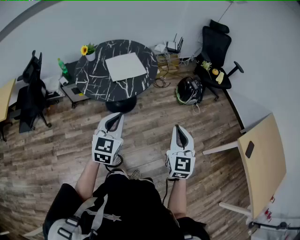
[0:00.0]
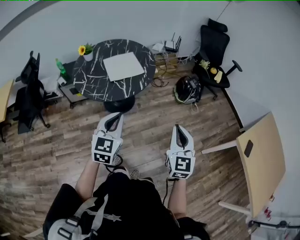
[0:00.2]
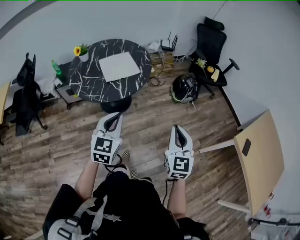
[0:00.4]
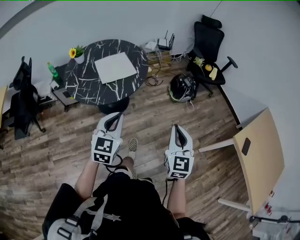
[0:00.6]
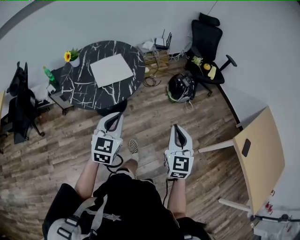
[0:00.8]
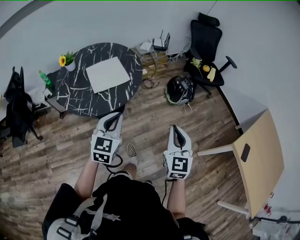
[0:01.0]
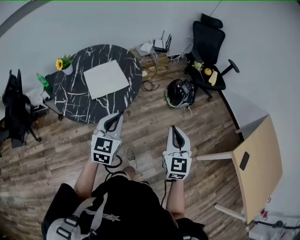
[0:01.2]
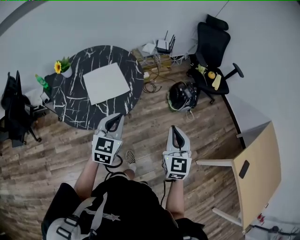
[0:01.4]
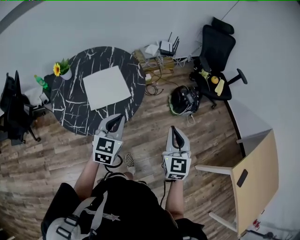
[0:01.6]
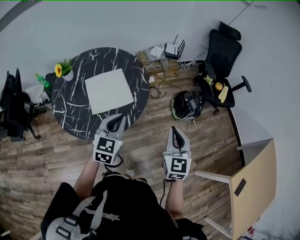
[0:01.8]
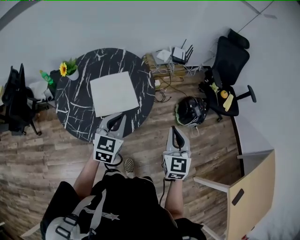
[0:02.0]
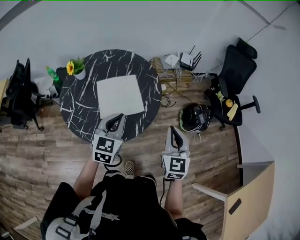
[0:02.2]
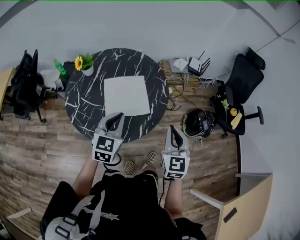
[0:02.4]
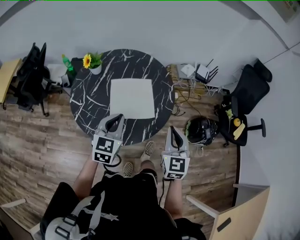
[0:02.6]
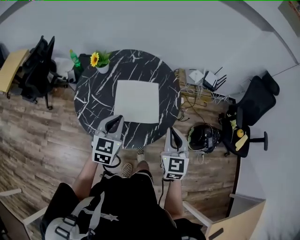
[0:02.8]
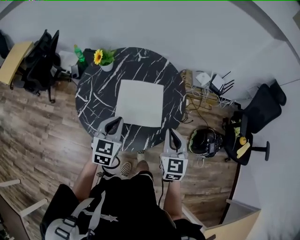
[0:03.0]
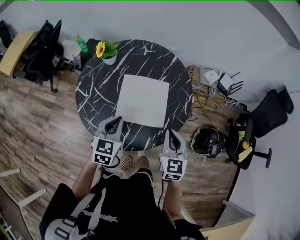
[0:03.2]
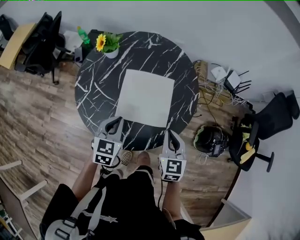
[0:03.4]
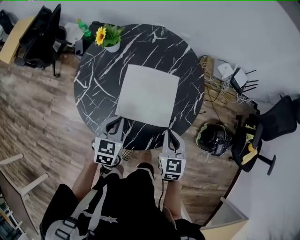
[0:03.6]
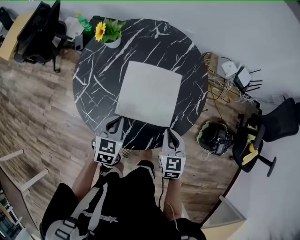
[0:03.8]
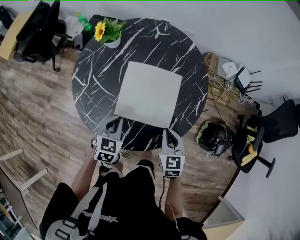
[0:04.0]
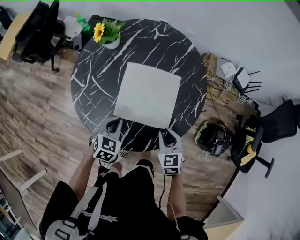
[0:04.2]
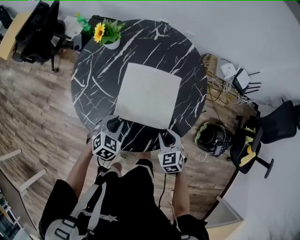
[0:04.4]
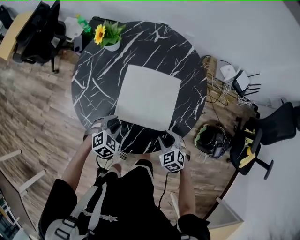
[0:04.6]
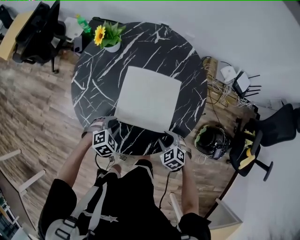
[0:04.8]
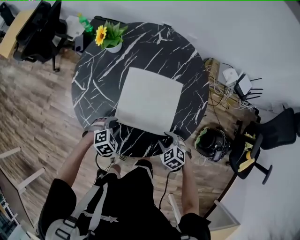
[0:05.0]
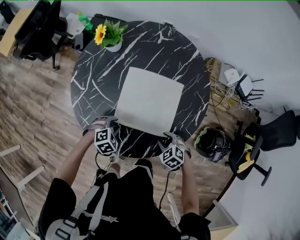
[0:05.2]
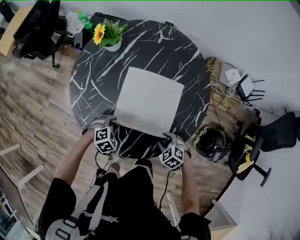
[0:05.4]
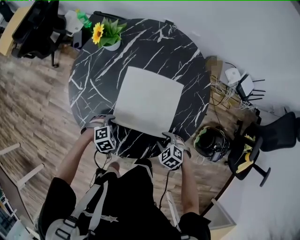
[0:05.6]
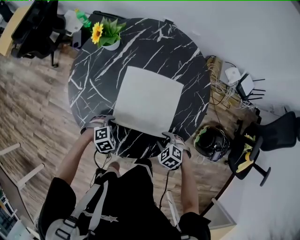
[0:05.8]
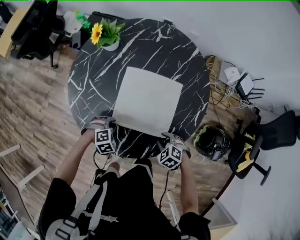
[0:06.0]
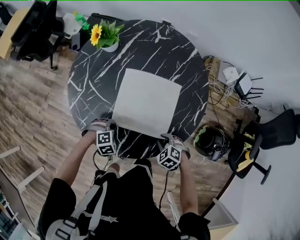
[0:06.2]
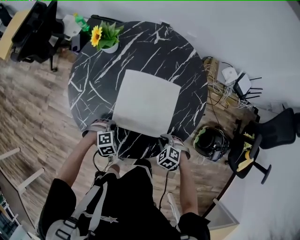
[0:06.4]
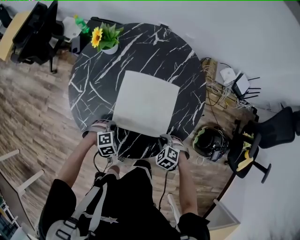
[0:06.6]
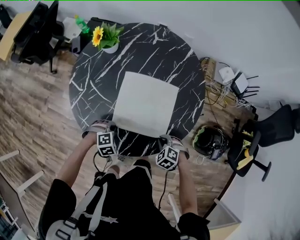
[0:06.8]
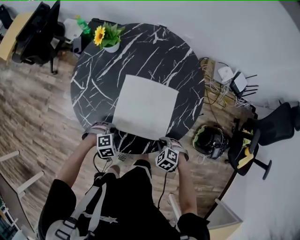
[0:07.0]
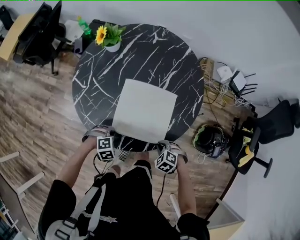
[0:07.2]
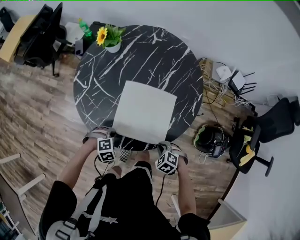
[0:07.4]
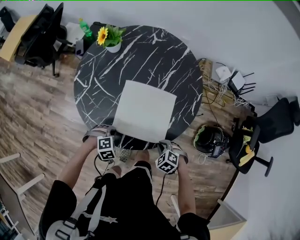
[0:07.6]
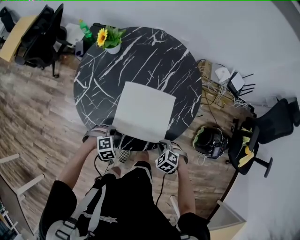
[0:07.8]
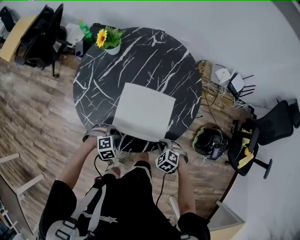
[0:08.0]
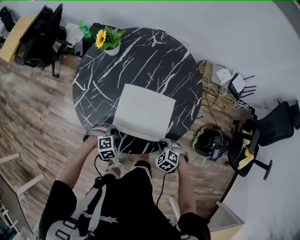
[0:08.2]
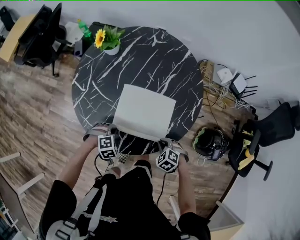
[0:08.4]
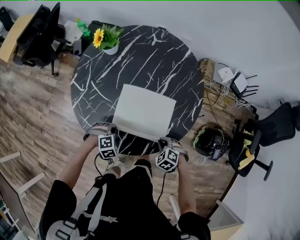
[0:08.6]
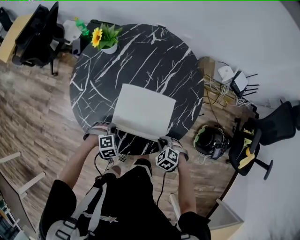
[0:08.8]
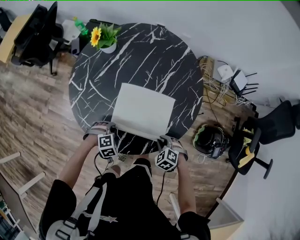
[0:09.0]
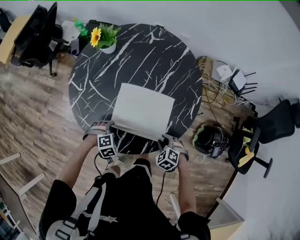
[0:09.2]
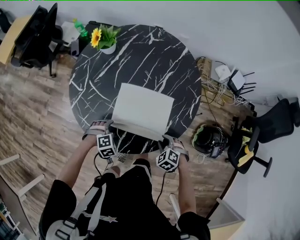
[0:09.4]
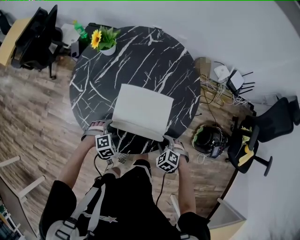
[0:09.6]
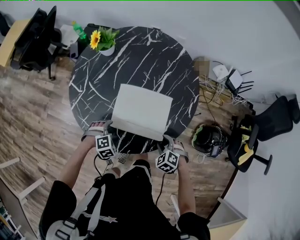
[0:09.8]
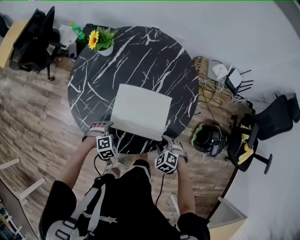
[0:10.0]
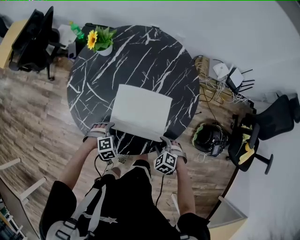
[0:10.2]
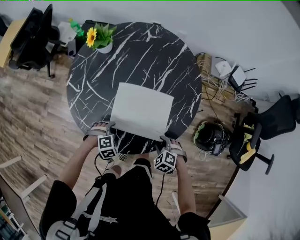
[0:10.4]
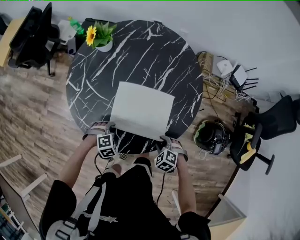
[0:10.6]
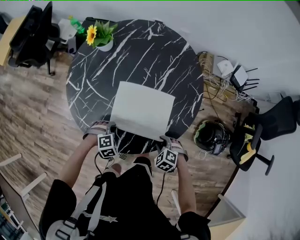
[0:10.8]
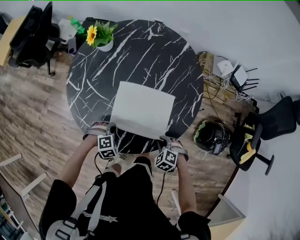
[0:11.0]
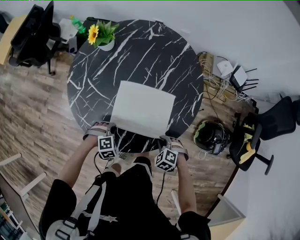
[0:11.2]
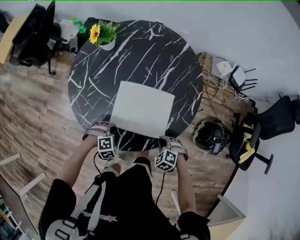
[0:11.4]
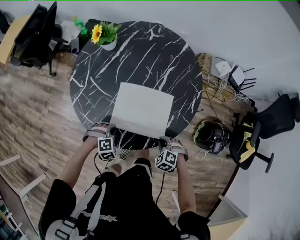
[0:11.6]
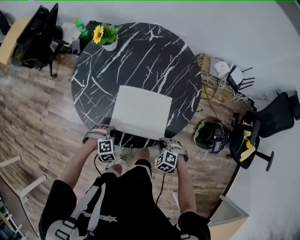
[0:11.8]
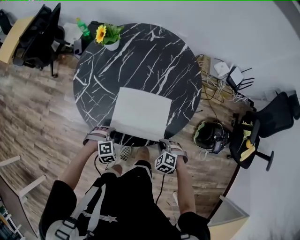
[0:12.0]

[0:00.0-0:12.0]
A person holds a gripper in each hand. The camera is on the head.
0:00.0 to 0:01.6: The two grippers go roughly 30 cm forward.
0:01.6 to 0:03.0: The right gripper shifts by about 30 cm, and turns by approximately 30 degrees. The left gripper shifts by approximately 20 cm, and swivels about 30 degrees.
0:03.0 to 0:04.4: Both grippers move downward, some 20 cm. The left gripper rotates about 30 degrees, and opens up. Meanwhile the right gripper tips its fingers downward by about 30 degrees, and opens.
0:04.4 to 0:06.0: The two grippers go approximately 10 cm downward. The left gripper changes its angle by some 40 degrees. The right gripper swivels roughly 30 degrees.
0:06.0 to 0:07.6: The left gripper changes place by approximately 10 cm. The right gripper changes place by roughly 10 cm, and closes its fingers.
0:07.6 to 0:09.0: The left gripper ends up about 5 cm from where it was, while the right gripper ends up some 5 cm from where it was.
0:09.0 to 0:10.4: The right gripper opens, while the left gripper opens.
0:10.4 to 0:12.0: The left gripper ends up some 5 cm from where it was, and closes; the right gripper changes place by some 5 cm, and closes.

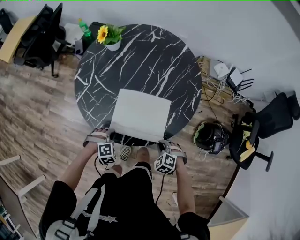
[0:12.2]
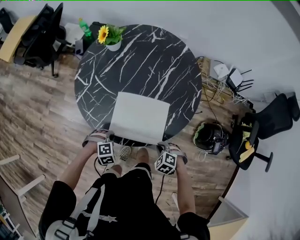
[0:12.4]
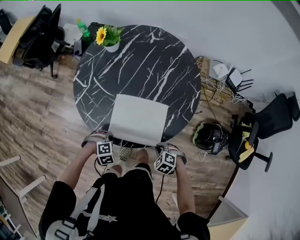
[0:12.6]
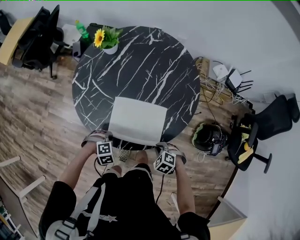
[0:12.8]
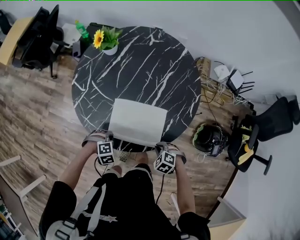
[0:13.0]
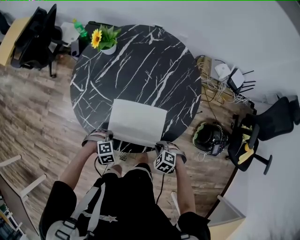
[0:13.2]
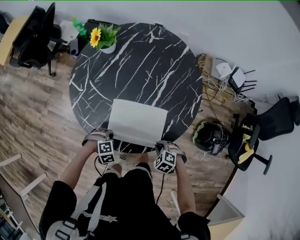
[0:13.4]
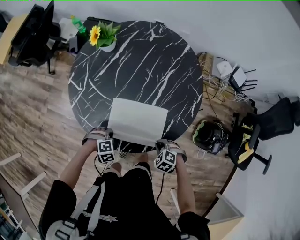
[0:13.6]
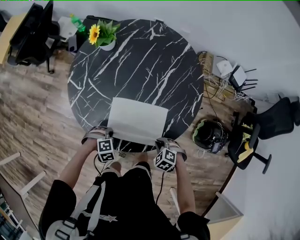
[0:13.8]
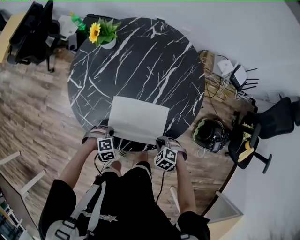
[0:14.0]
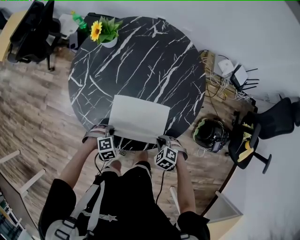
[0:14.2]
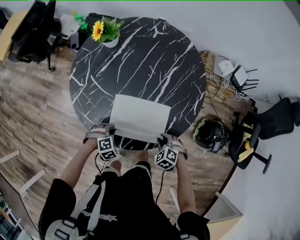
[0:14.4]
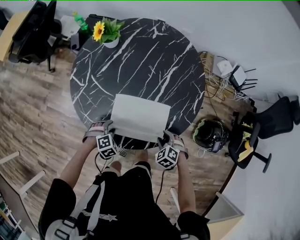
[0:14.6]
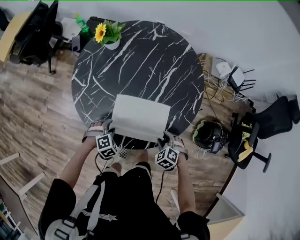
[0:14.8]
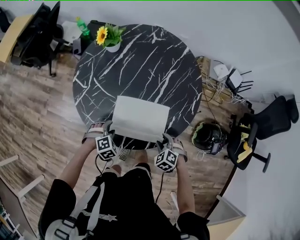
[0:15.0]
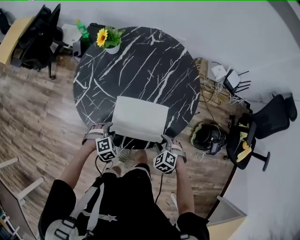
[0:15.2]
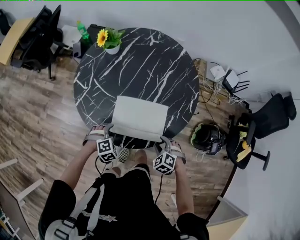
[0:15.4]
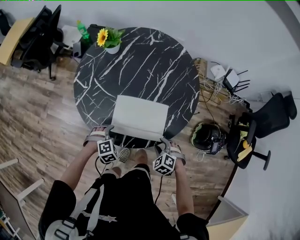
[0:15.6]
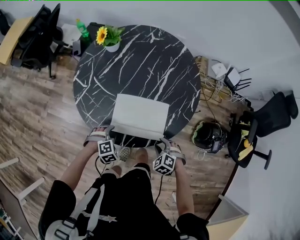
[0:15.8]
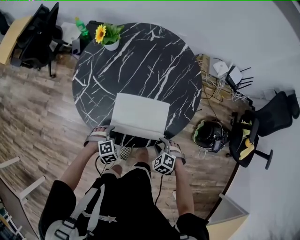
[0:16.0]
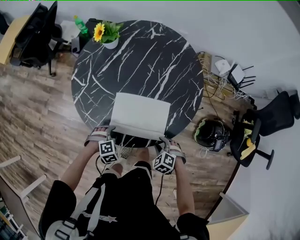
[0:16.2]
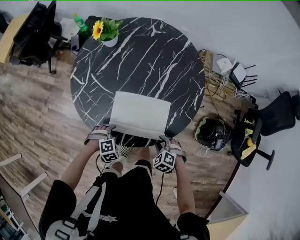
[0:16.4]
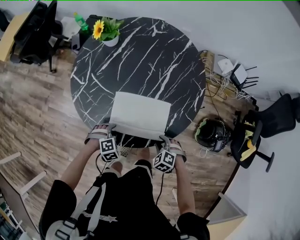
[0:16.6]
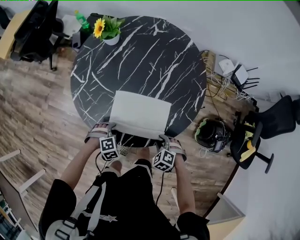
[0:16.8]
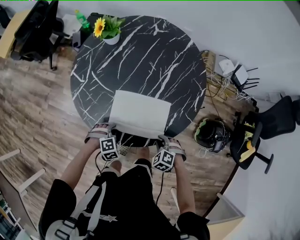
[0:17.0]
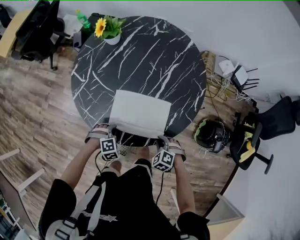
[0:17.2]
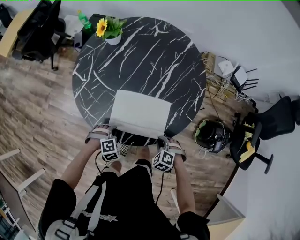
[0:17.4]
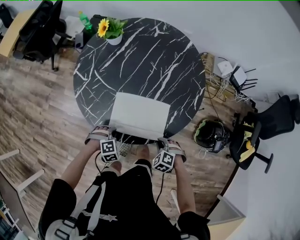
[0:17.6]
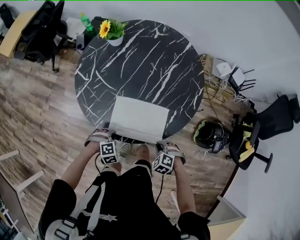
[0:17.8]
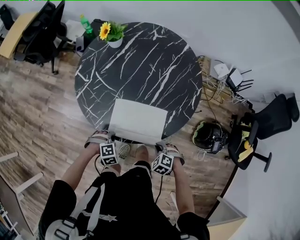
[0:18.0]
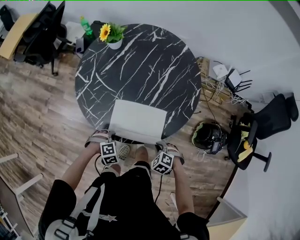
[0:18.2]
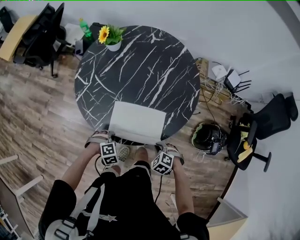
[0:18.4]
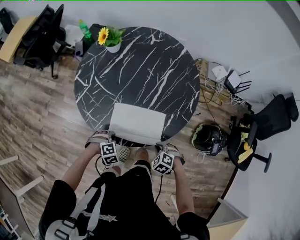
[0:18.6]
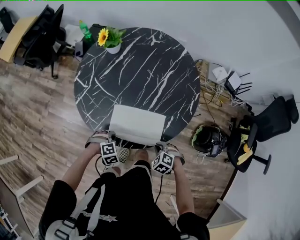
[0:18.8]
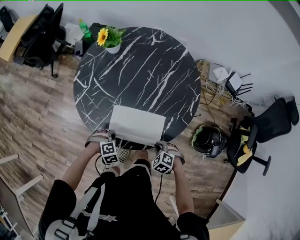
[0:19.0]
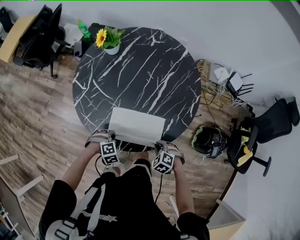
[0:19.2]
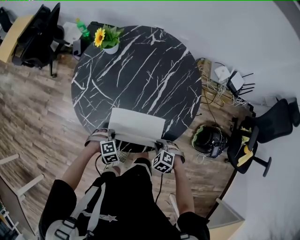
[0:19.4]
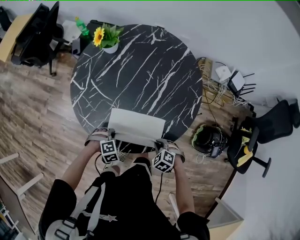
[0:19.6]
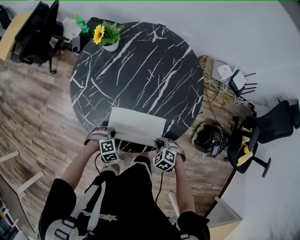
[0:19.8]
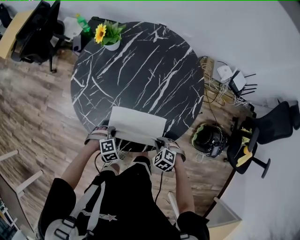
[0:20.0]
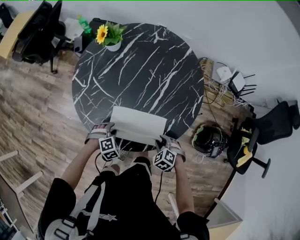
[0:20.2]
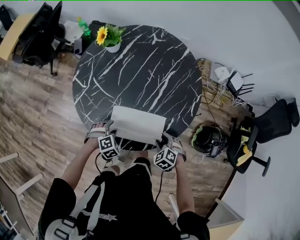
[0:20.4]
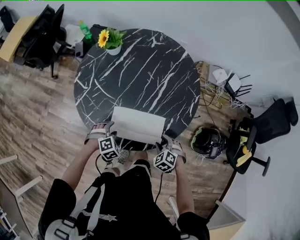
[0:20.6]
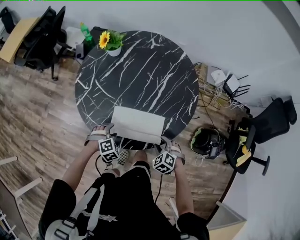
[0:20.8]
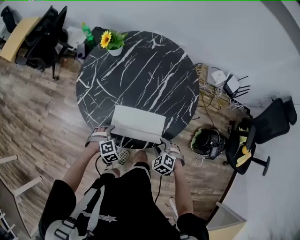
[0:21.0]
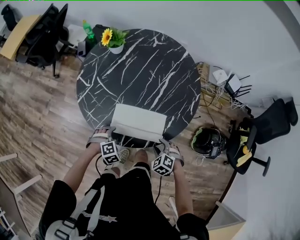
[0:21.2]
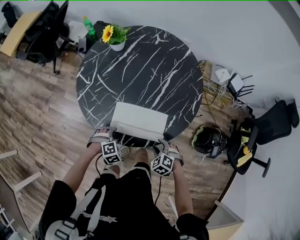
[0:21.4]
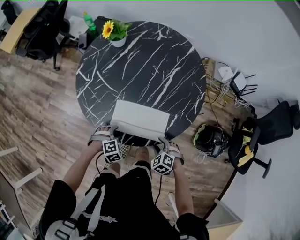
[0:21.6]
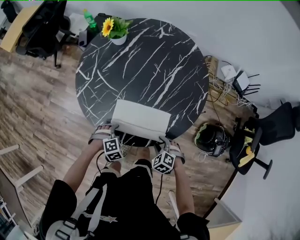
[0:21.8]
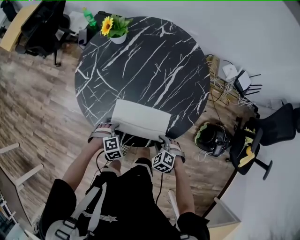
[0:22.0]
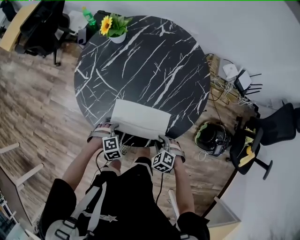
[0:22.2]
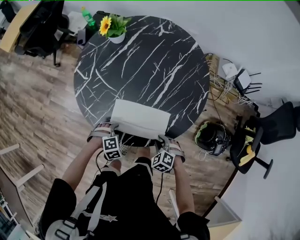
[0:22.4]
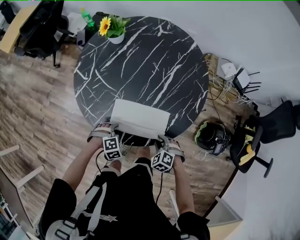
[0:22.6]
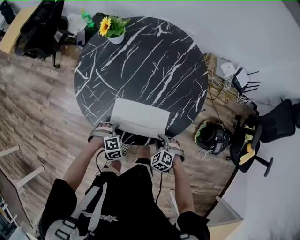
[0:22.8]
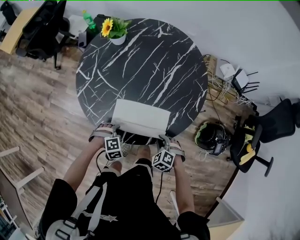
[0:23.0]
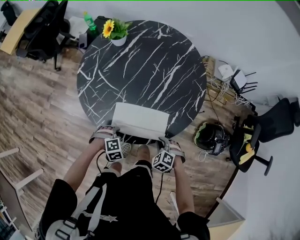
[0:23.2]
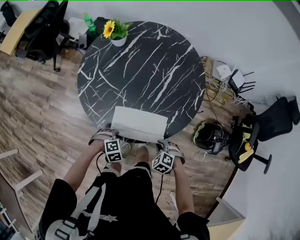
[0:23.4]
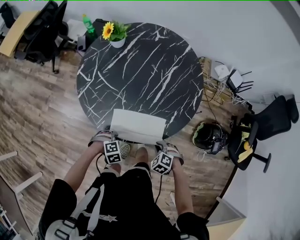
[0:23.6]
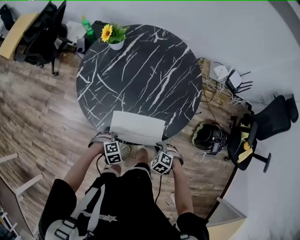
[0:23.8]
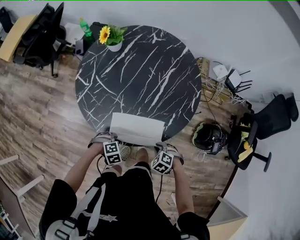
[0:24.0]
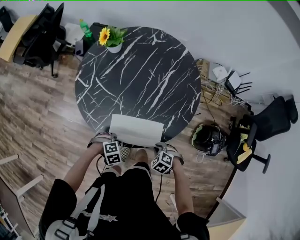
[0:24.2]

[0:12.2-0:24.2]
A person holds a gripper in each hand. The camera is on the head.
0:12.2 to 0:13.8: There are only small adjustments of the grippers.
0:13.8 to 0:15.2: The left gripper opens up, while the right gripper opens up.
0:15.2 to 0:16.6: The grippers stay close to where they were, moving slightly.
0:16.6 to 0:18.2: The right gripper closes its fingers; the left gripper shifts by some 5 cm, and closes up.
0:18.2 to 0:19.8: The left gripper ends up about 5 cm from where it was, while the right gripper ends up approximately 5 cm from where it was.
0:19.8 to 0:21.2: The right gripper opens; the left gripper opens up.
0:21.2 to 0:22.6: The left gripper closes, while the right gripper closes up.
